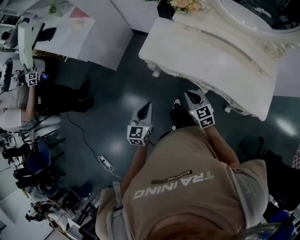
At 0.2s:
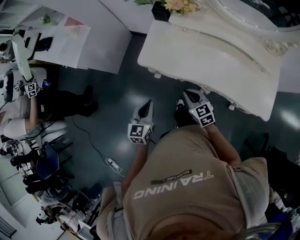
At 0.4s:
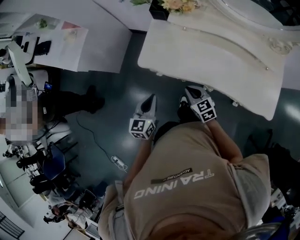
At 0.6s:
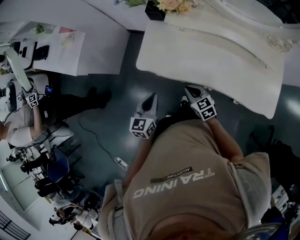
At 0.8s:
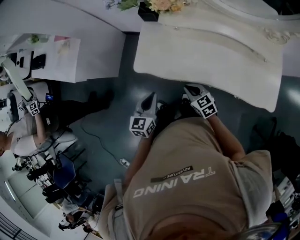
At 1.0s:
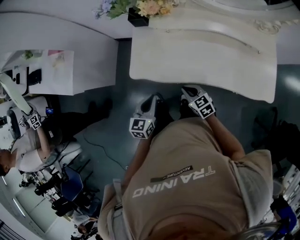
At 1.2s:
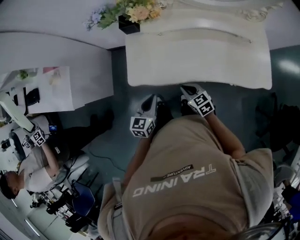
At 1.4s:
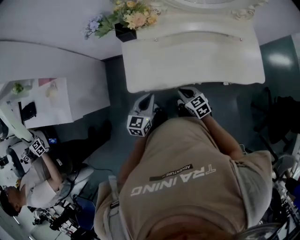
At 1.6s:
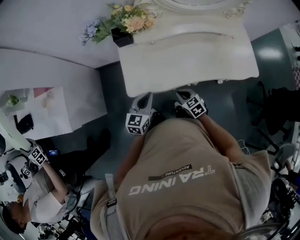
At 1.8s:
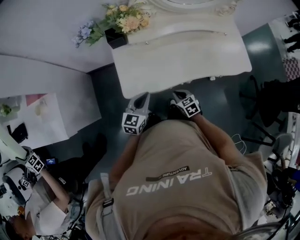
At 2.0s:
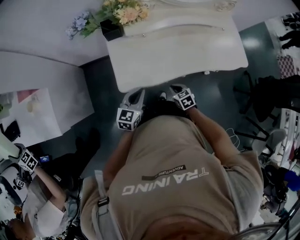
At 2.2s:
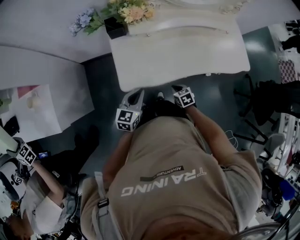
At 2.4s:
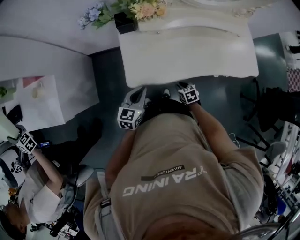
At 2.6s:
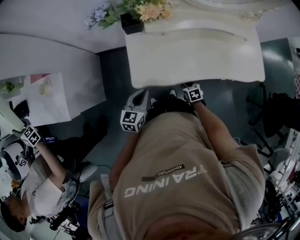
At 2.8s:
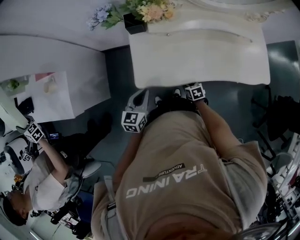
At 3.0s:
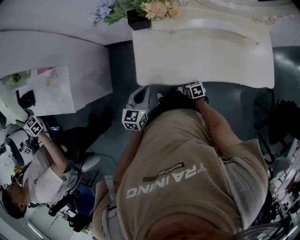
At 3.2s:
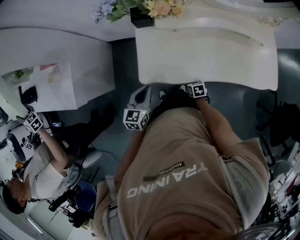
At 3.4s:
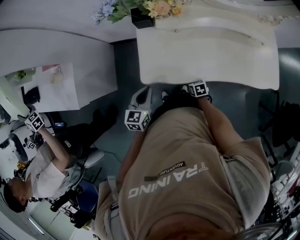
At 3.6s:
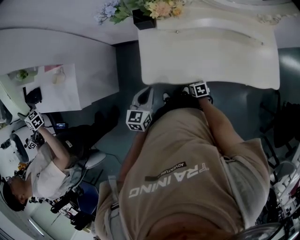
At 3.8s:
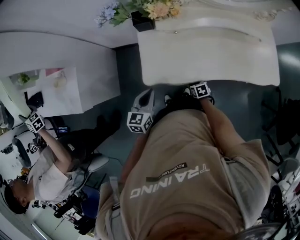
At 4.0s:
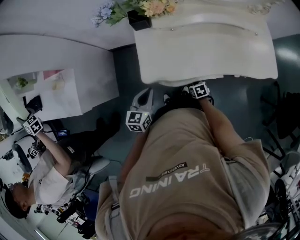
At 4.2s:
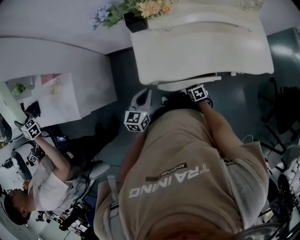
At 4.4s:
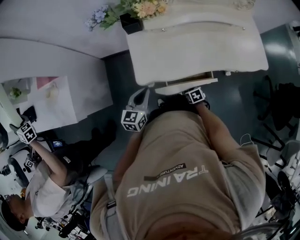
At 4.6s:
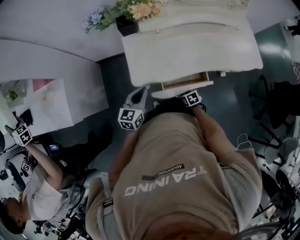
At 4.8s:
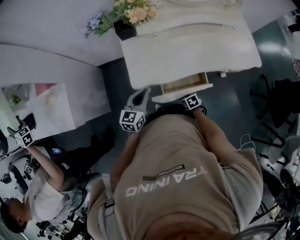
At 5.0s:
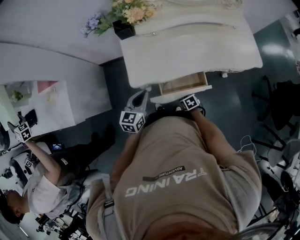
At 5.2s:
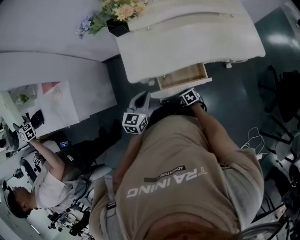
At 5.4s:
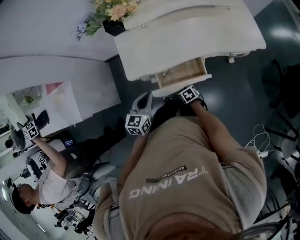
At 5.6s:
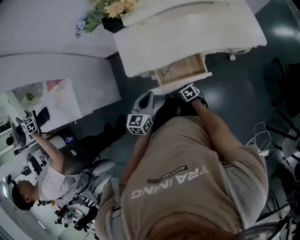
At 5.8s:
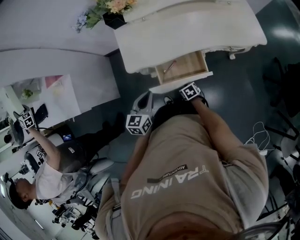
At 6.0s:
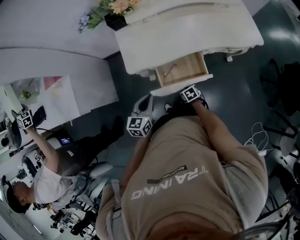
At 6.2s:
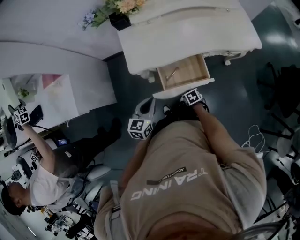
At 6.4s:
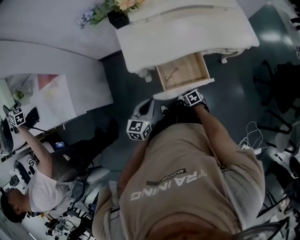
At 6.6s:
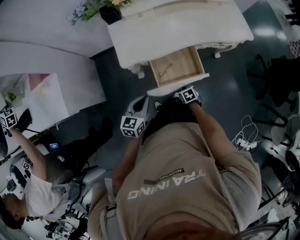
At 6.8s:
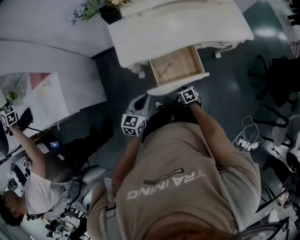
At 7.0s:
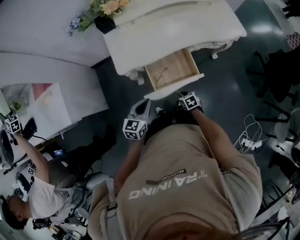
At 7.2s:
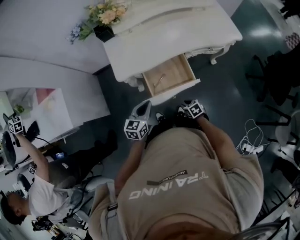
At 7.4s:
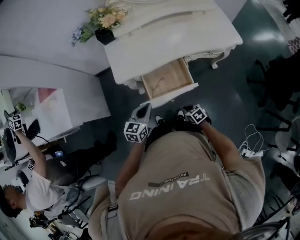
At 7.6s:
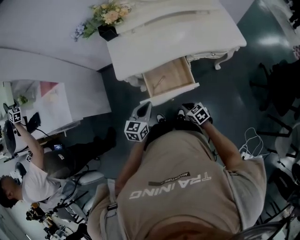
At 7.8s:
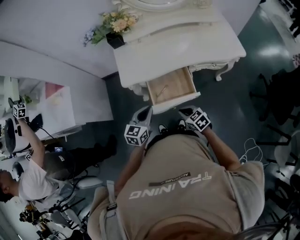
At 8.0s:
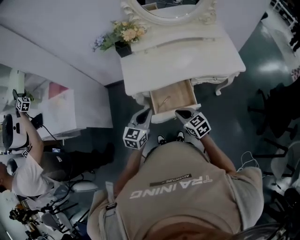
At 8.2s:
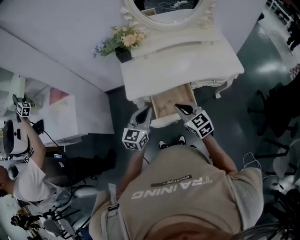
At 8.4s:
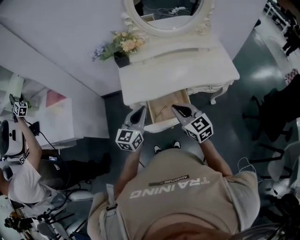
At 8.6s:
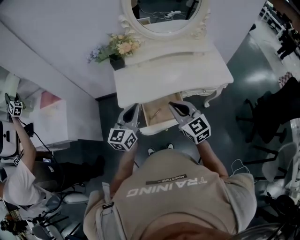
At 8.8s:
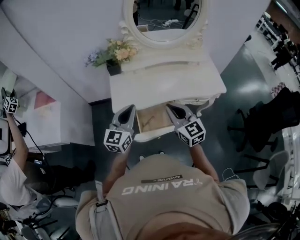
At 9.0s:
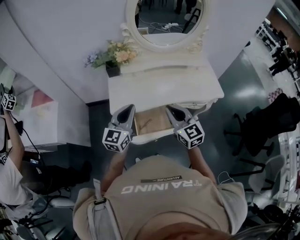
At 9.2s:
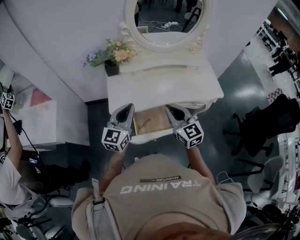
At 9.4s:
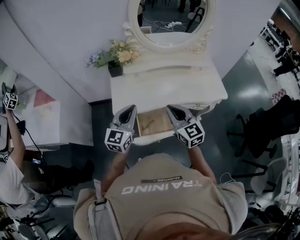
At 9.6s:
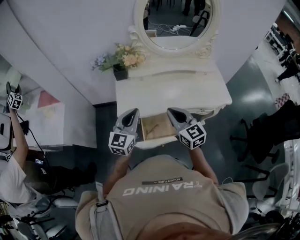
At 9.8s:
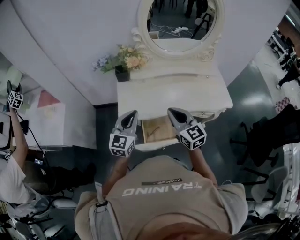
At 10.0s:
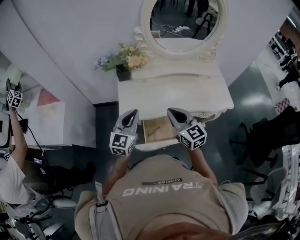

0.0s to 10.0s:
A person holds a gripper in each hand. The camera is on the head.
0.0s to 1.4s: The right gripper shifts by approximately 10 cm, and turns by about 30 degrees; the left gripper shifts by some 20 cm, and changes its angle by roughly 40 degrees.
1.4s to 2.8s: The left gripper is displaced to the left by about 10 cm; the right gripper shifts about 15 cm downward, swivels approximately 30 degrees, and opens up.
2.8s to 4.2s: The right gripper is displaced backward by about 5 cm.
4.2s to 5.8s: The right gripper shifts some 15 cm backward, while the left gripper is displaced backward and to the right by some 15 cm.
5.8s to 7.2s: The left gripper shifts approximately 5 cm backward; the right gripper is displaced backward by approximately 10 cm.
7.2s to 8.6s: The right gripper is displaced upward by about 40 cm, angles its fingers upward, by about 50 degrees, and closes its fingers; the left gripper shifts approximately 20 cm upward, and rotates approximately 30 degrees.
8.6s to 10.0s: The two grippers go approximately 5 cm forward.

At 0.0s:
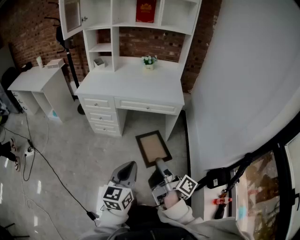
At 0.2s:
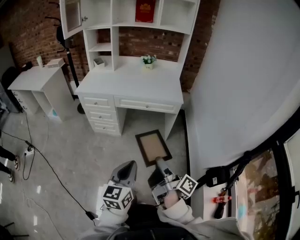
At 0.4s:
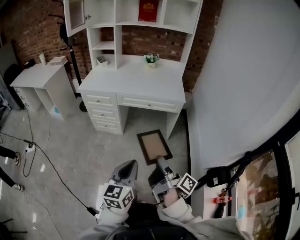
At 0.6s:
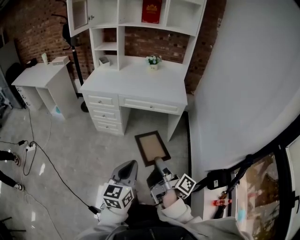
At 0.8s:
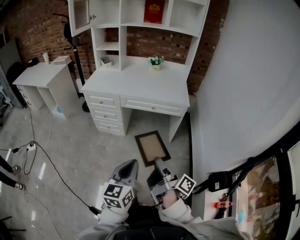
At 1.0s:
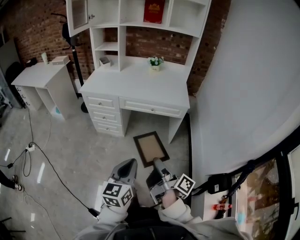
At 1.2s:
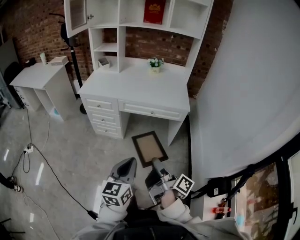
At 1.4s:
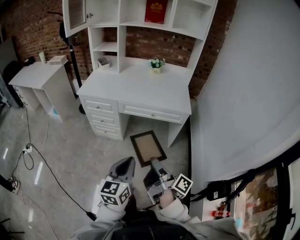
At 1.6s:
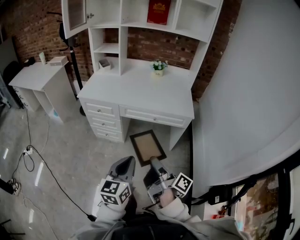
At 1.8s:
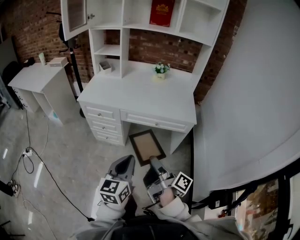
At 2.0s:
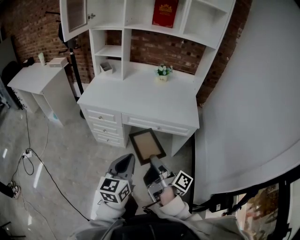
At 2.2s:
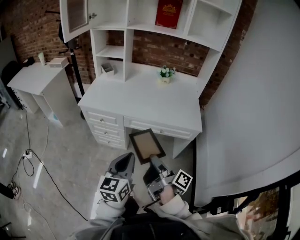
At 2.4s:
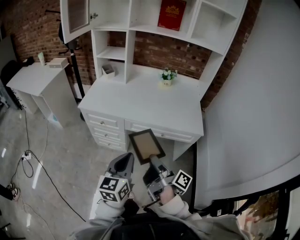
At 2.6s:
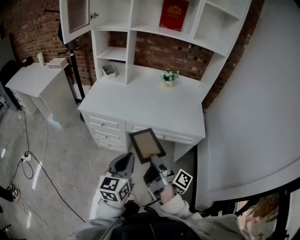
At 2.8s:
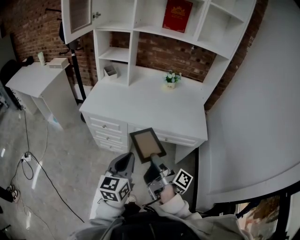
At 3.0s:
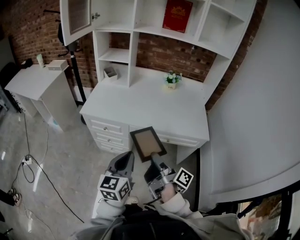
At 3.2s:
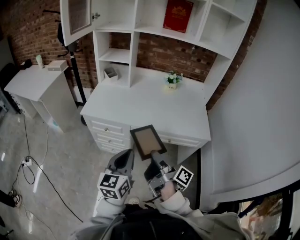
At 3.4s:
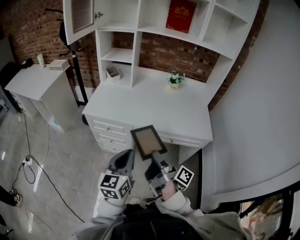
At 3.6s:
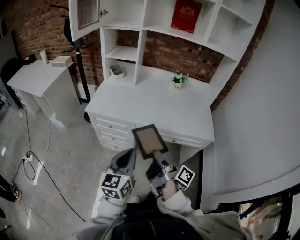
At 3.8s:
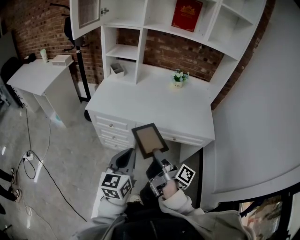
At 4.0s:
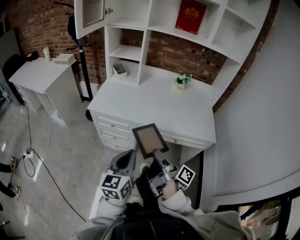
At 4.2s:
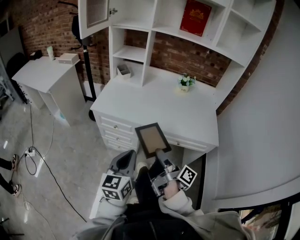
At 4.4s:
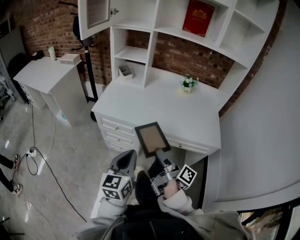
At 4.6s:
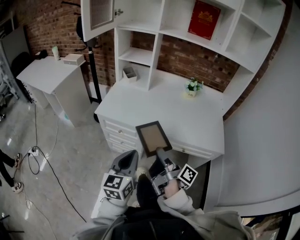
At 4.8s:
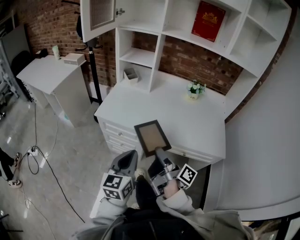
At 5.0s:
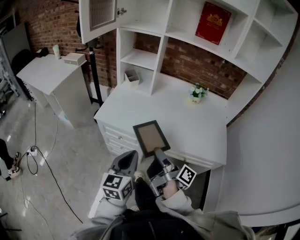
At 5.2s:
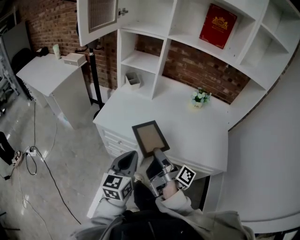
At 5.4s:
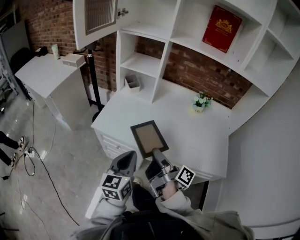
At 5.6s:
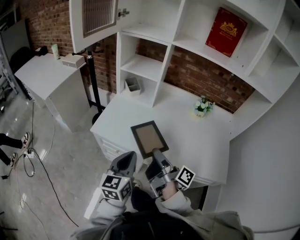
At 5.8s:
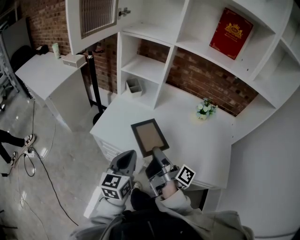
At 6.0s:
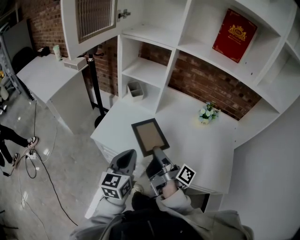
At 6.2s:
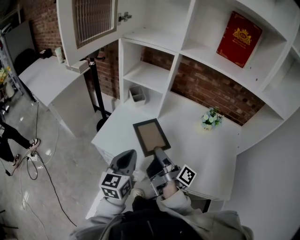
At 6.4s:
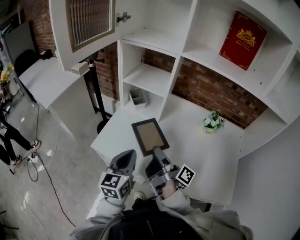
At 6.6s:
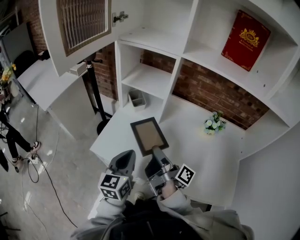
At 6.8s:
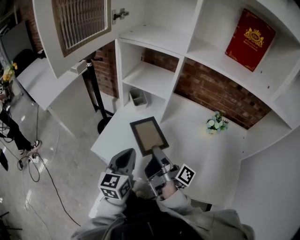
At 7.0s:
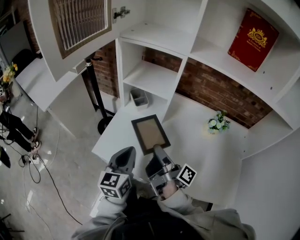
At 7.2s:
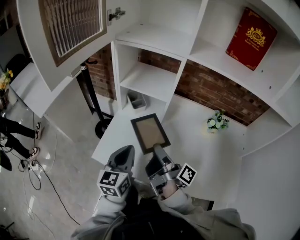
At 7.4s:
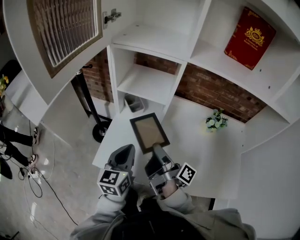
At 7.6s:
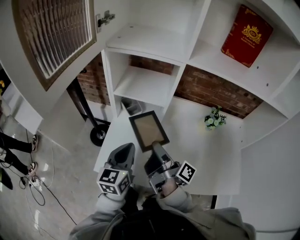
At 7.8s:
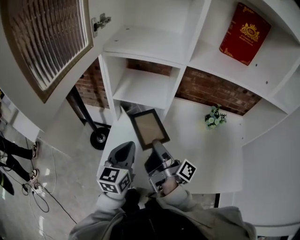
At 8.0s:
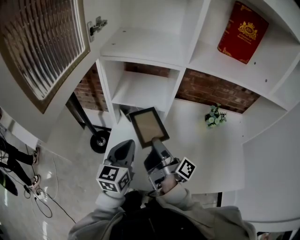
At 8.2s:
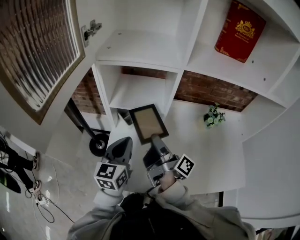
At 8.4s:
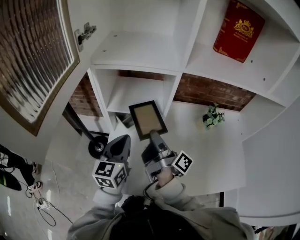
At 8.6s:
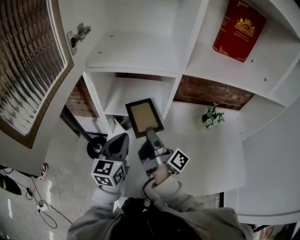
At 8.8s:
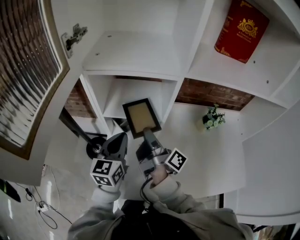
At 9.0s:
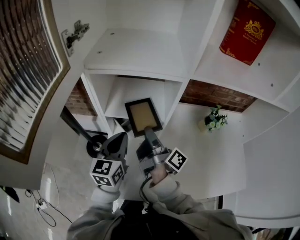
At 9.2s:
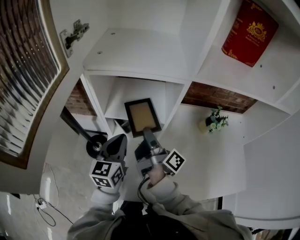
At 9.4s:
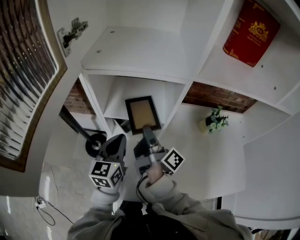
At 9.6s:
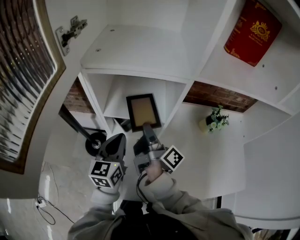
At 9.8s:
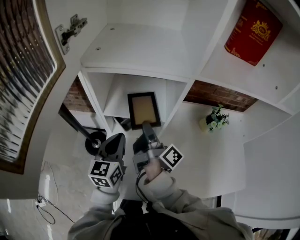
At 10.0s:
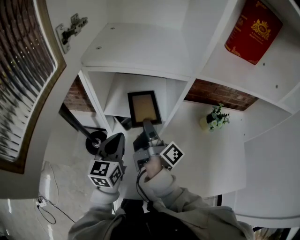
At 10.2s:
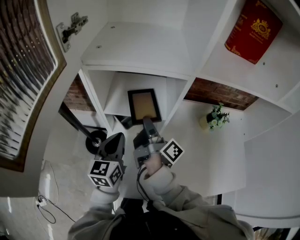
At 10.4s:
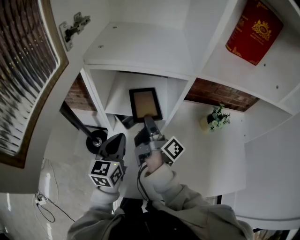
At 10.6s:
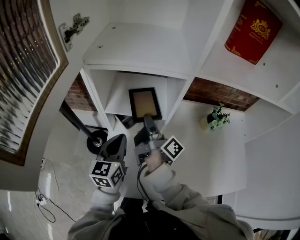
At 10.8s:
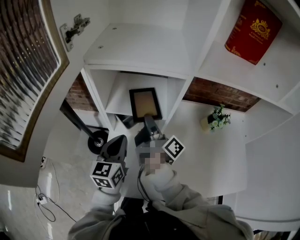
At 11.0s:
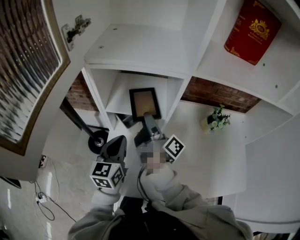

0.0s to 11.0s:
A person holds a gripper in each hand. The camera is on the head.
0.0s to 1.6s: The left gripper shifts by about 15 cm.
1.6s to 3.2s: The left gripper changes place by about 25 cm.
3.2s to 4.8s: The left gripper shifts by roughly 10 cm.
4.8s to 6.2s: The left gripper changes place by approximately 25 cm.
6.2s to 7.8s: The left gripper moves some 20 cm.
7.8s to 9.4s: The left gripper shifts by about 15 cm.

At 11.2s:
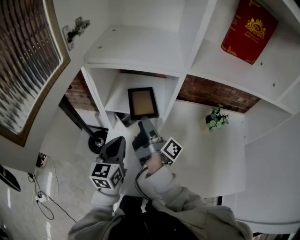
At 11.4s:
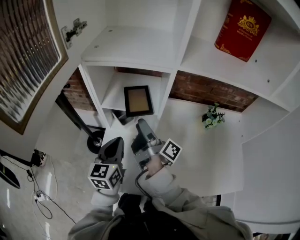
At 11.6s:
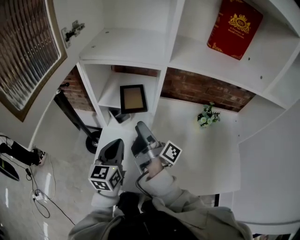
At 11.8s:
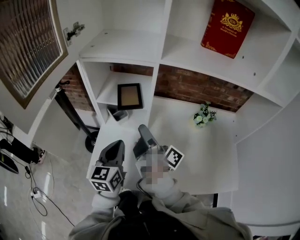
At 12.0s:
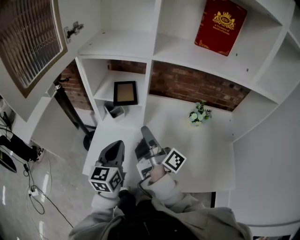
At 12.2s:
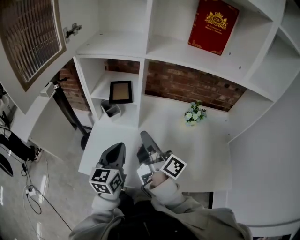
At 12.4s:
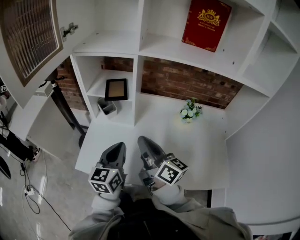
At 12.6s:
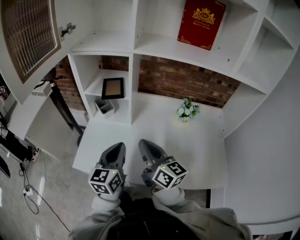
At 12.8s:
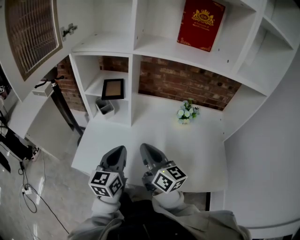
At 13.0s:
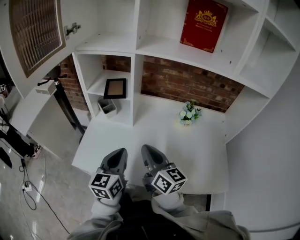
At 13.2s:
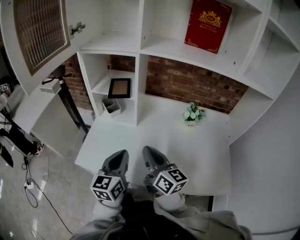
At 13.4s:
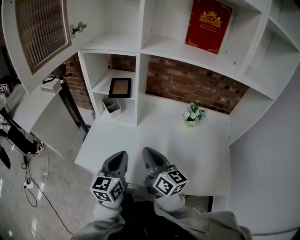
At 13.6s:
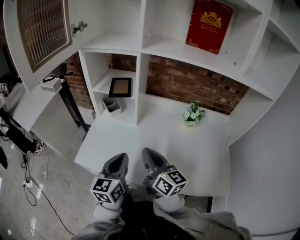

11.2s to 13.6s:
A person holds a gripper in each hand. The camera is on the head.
11.2s to 12.4s: The left gripper shifts by about 20 cm.
12.4s to 13.6s: The left gripper moves roughly 5 cm.
